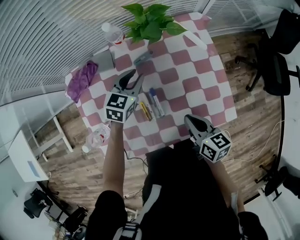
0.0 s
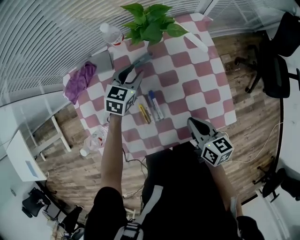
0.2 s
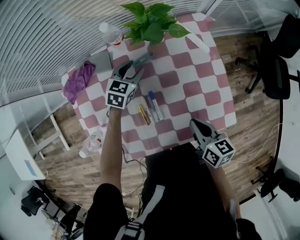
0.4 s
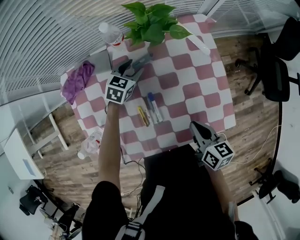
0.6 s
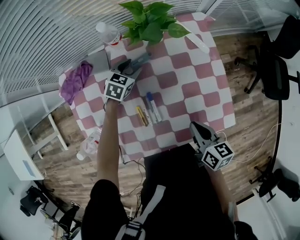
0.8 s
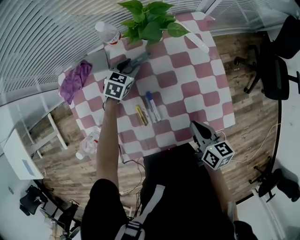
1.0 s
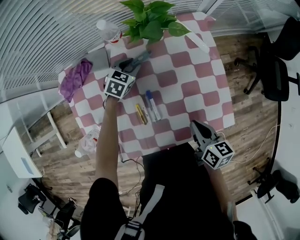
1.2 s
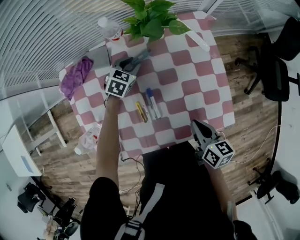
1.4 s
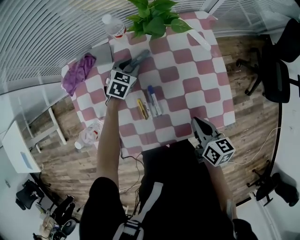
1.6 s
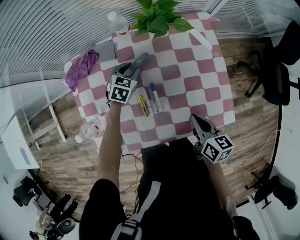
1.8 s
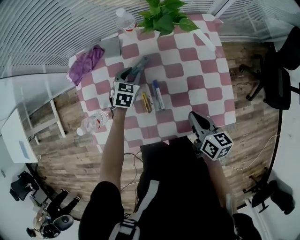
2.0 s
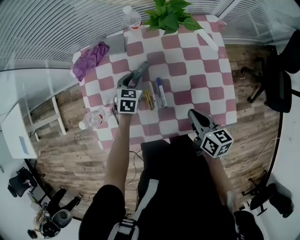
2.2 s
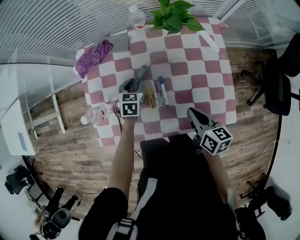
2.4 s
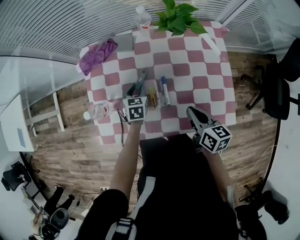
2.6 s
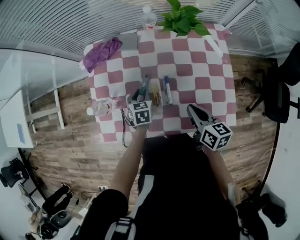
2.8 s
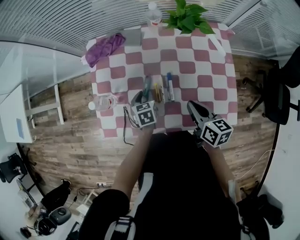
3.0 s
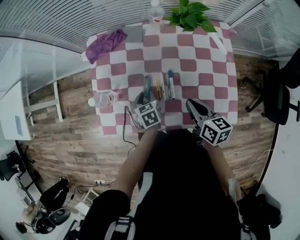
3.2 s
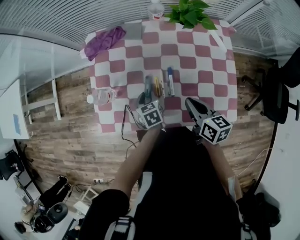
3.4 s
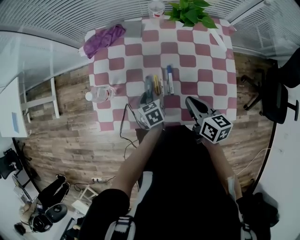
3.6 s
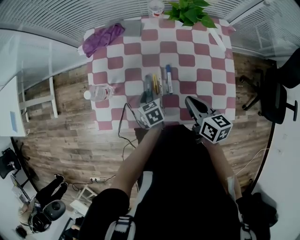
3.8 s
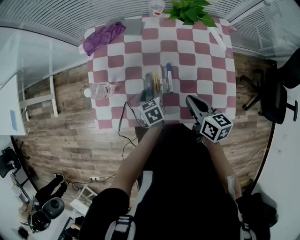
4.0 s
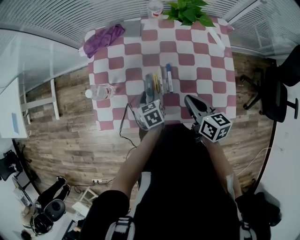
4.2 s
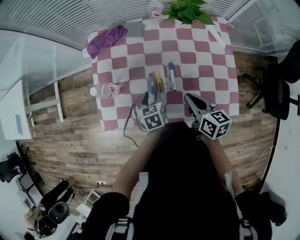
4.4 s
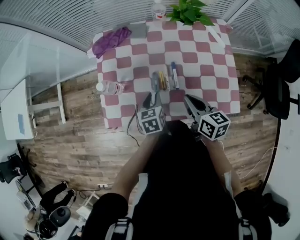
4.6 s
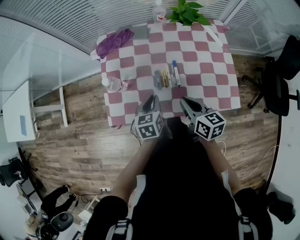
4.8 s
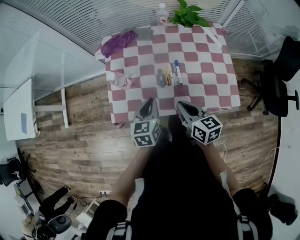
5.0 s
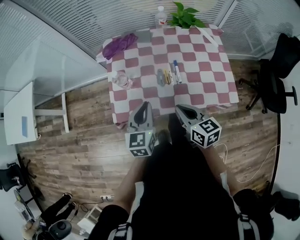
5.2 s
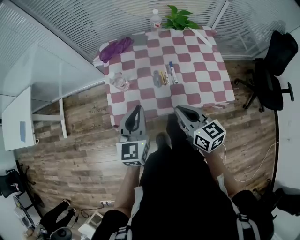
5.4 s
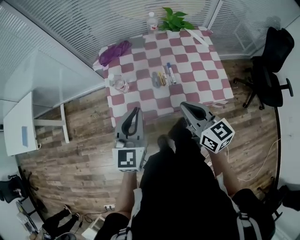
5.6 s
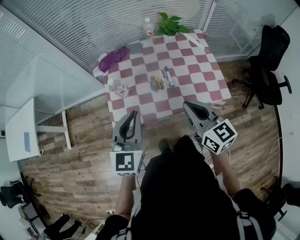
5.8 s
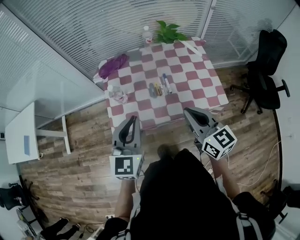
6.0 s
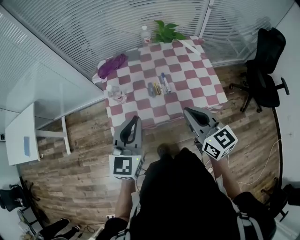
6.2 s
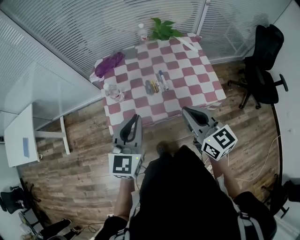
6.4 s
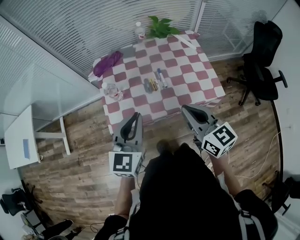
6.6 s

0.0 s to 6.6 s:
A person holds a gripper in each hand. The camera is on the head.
0.0 to 1.6 s: The left gripper moves downward, some 10 cm.
1.6 to 3.2 s: The left gripper ends up approximately 25 cm from where it was, and rotates around the line of its fingers by roughly 50 degrees, counterclockwise from behind; the right gripper shifts by approximately 10 cm.
3.2 to 5.0 s: The right gripper moves to the left and backward, approximately 15 cm; the left gripper shifts roughly 20 cm upward and backward, changes its angle by some 30 degrees, and closes up.
5.0 to 6.6 s: Both grippers travel together upward and backward, about 20 cm. The left gripper rotates some 30 degrees; the right gripper rotates about 20 degrees.

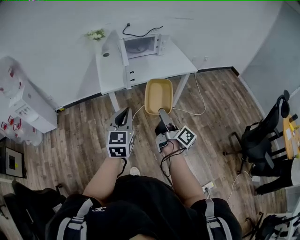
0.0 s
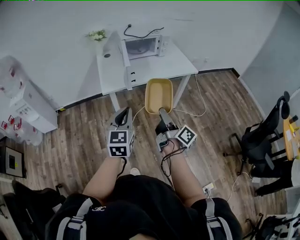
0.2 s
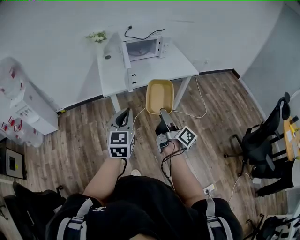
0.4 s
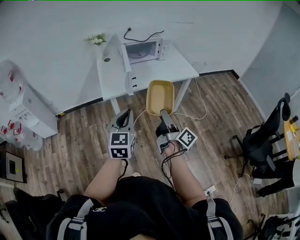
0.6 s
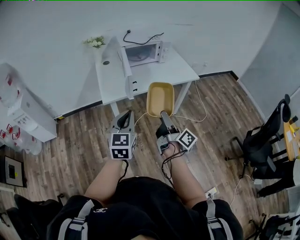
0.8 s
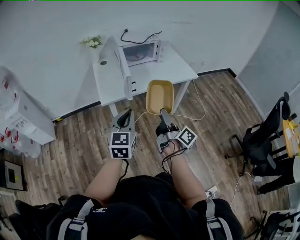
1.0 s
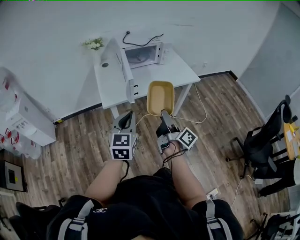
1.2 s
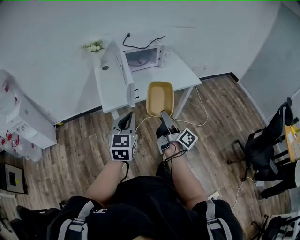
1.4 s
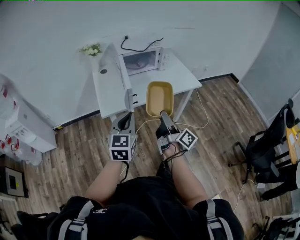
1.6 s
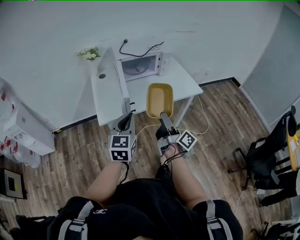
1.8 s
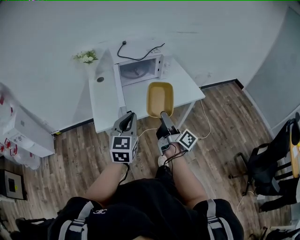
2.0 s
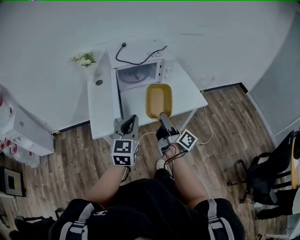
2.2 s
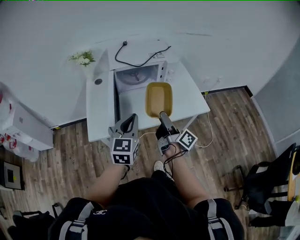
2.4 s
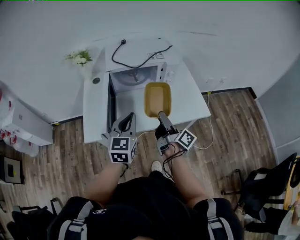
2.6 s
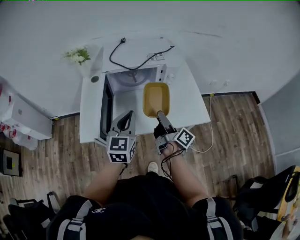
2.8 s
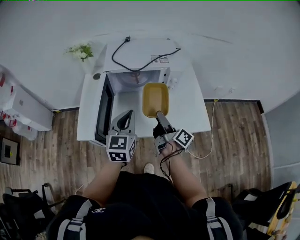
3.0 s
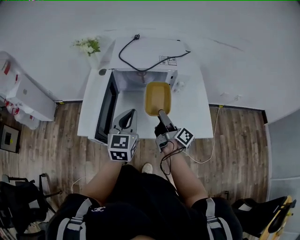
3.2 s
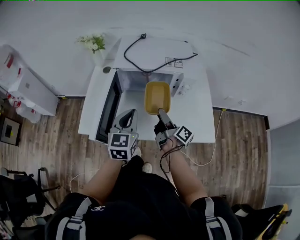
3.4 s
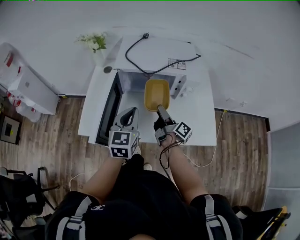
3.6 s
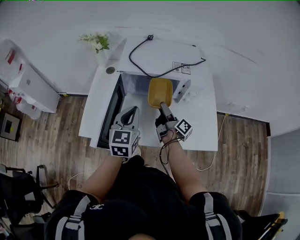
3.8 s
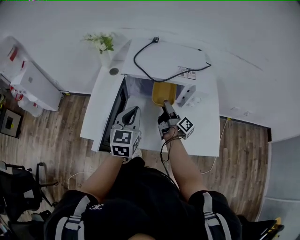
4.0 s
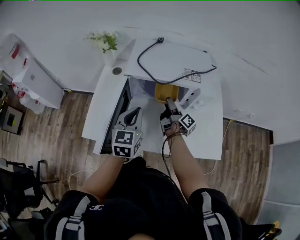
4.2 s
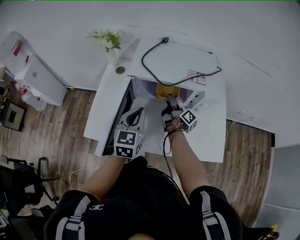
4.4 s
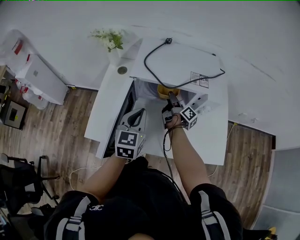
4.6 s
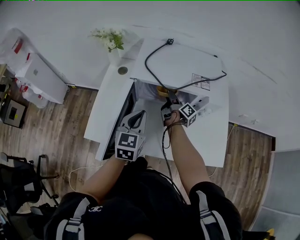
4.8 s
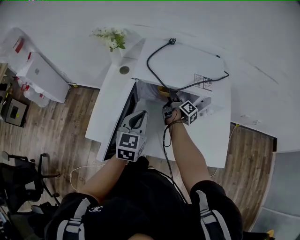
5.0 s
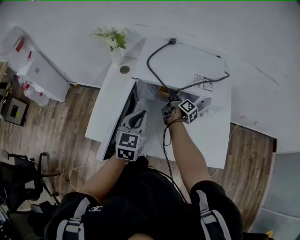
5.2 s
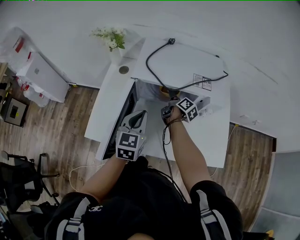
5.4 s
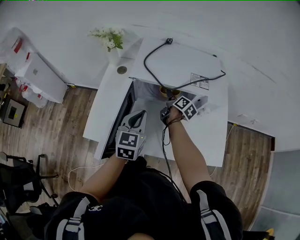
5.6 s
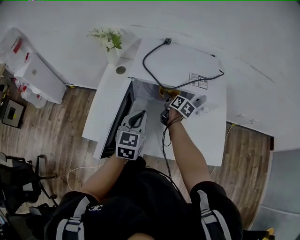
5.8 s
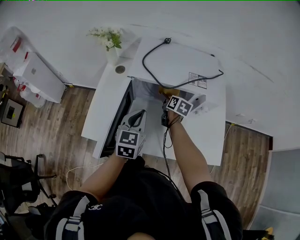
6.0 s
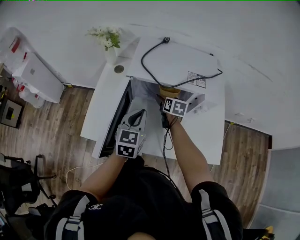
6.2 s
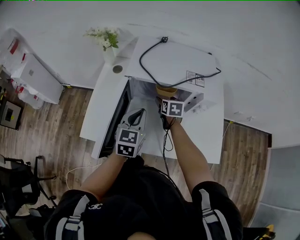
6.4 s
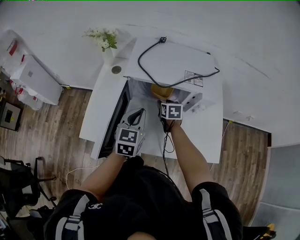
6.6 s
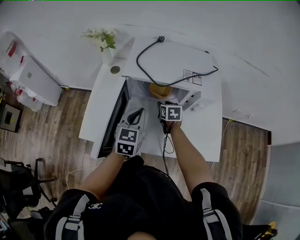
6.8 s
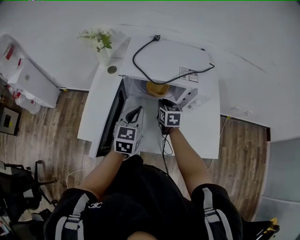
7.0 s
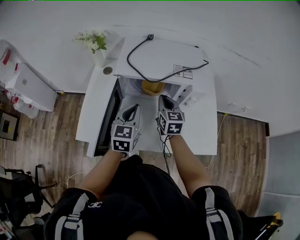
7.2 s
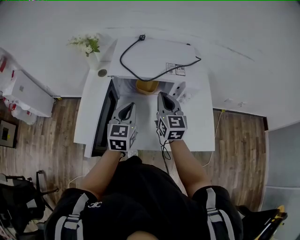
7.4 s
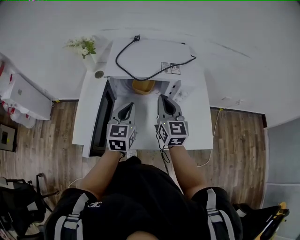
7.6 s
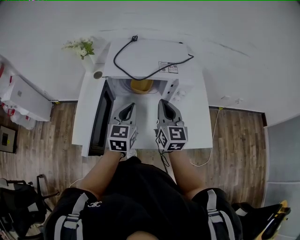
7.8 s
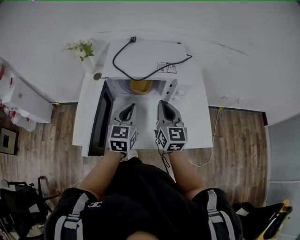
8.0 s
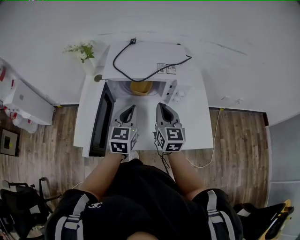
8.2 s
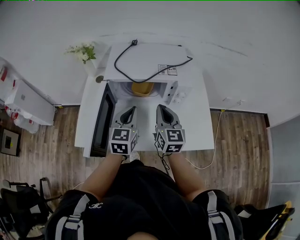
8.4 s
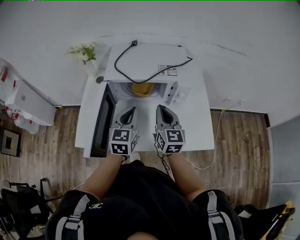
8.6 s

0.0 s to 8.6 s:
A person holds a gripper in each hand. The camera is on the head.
0.0 to 1.4 s: The two grippers go some 15 cm forward.
1.4 to 2.8 s: The pair of grippers is taken forward and to the right, roughly 50 cm.
2.8 to 4.4 s: The left gripper goes some 15 cm forward, while the right gripper shifts some 35 cm forward and downward.
4.4 to 5.8 s: The right gripper ends up roughly 5 cm from where it was, and tips its fingers downward by roughly 30 degrees.
5.8 to 7.2 s: The right gripper heads upward and backward, covering approximately 15 cm, twists about 40 degrees counterclockwise, seen from behind, and closes its fingers.
7.2 to 8.6 s: The left gripper moves some 5 cm. Meanwhile the right gripper moves backward and upward, about 10 cm.

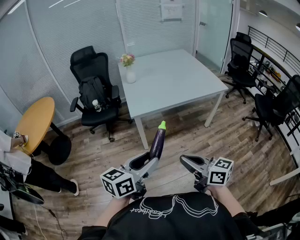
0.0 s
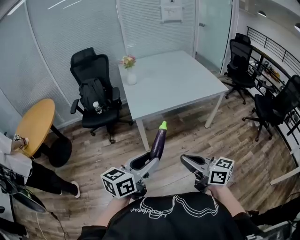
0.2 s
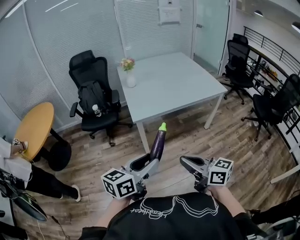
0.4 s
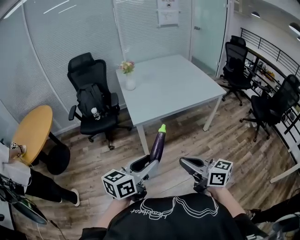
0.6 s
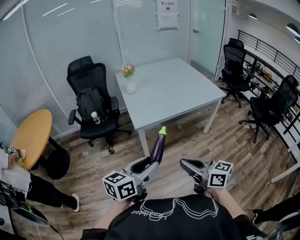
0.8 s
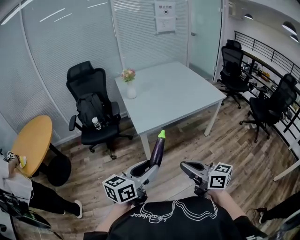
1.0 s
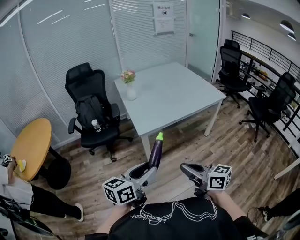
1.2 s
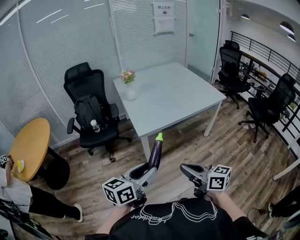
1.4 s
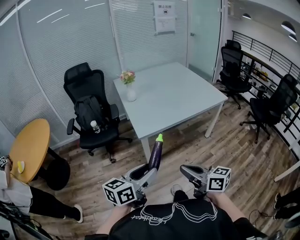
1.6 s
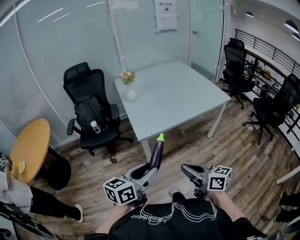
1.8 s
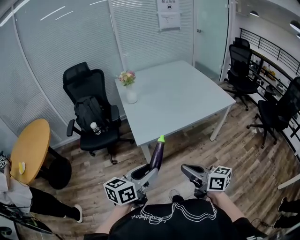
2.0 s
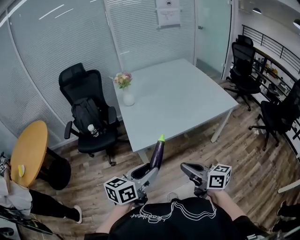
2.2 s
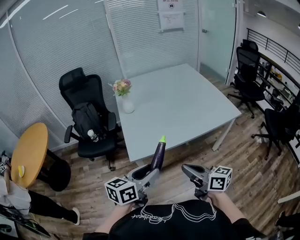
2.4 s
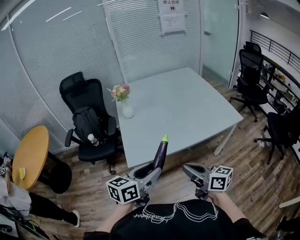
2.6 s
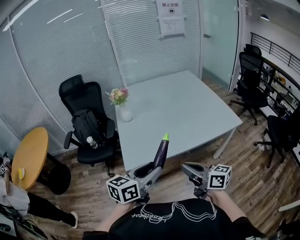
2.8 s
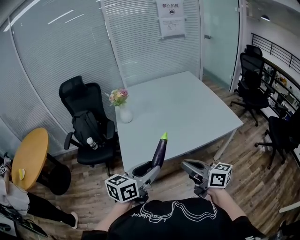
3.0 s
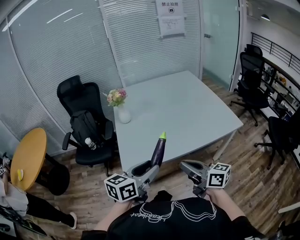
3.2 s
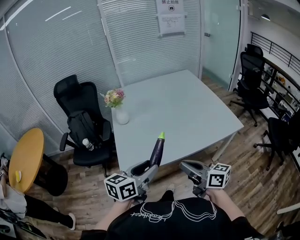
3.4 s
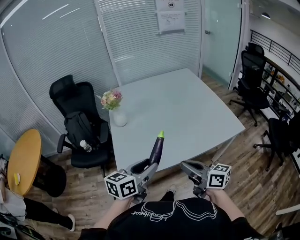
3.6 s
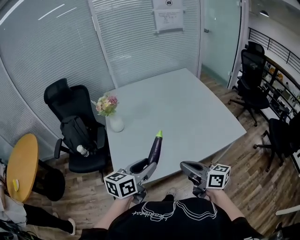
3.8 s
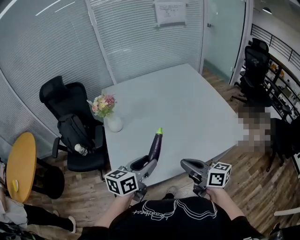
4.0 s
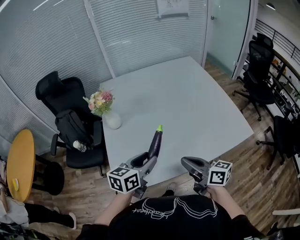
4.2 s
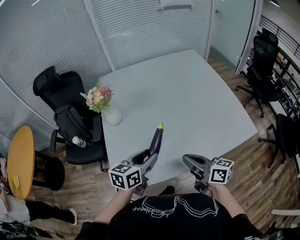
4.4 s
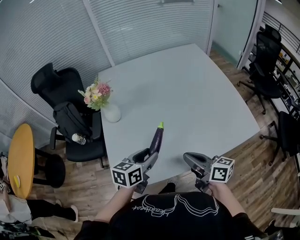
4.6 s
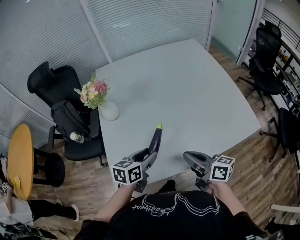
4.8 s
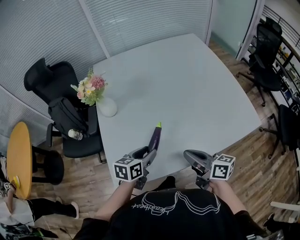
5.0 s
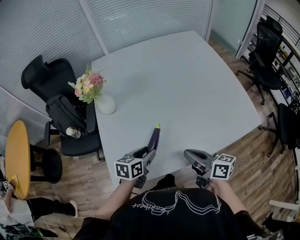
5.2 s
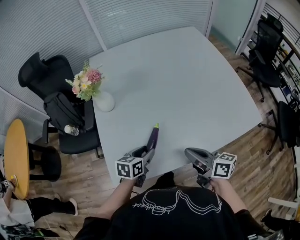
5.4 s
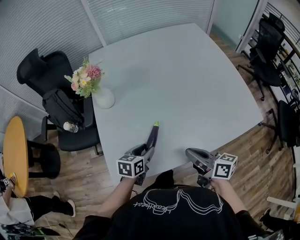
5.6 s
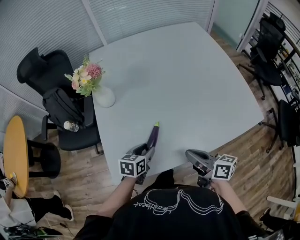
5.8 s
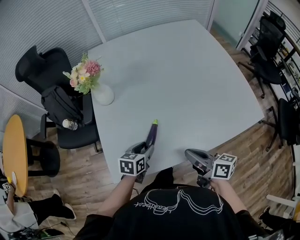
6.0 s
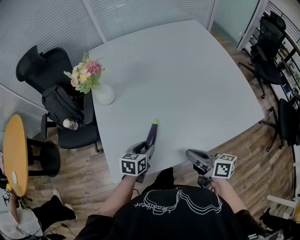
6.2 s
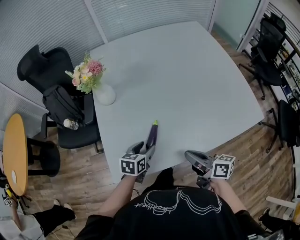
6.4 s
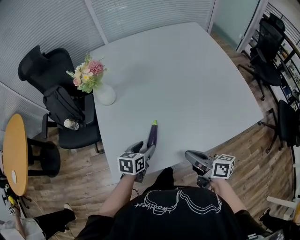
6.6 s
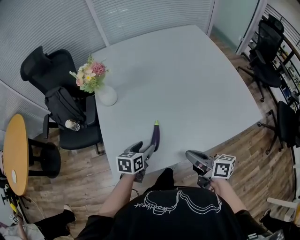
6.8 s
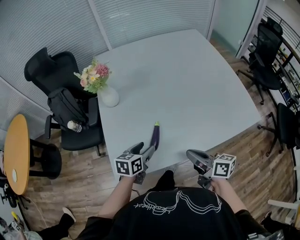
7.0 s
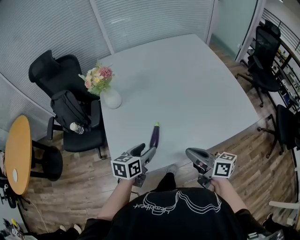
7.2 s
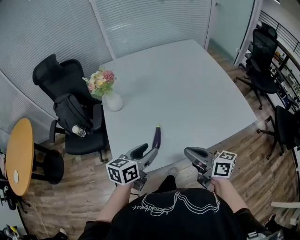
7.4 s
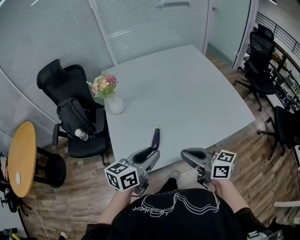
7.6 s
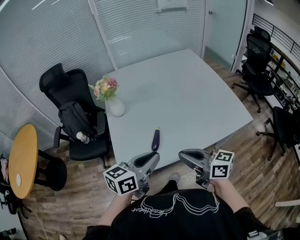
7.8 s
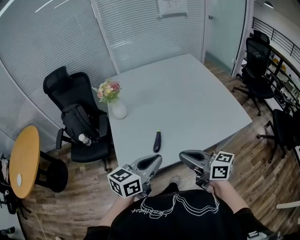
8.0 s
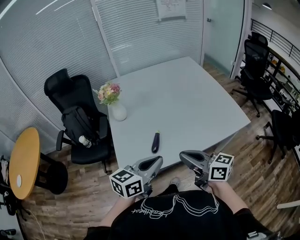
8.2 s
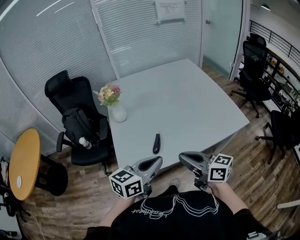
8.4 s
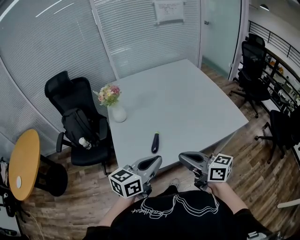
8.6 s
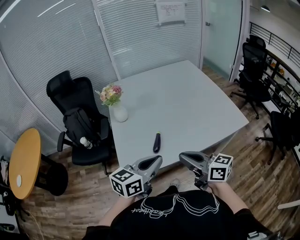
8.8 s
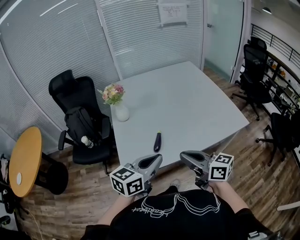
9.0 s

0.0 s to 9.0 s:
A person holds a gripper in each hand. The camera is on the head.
0.0 to 1.6 s: Both grippers move to the left and forward, about 15 cm.
1.6 to 3.0 s: Both grippers move forward and to the right, about 35 cm.
3.0 to 4.4 s: The grippers both shift forward by roughly 25 cm.
4.4 to 6.0 s: The right gripper travels downward by approximately 10 cm, while the left gripper heads downward, covering some 20 cm.
6.0 to 7.6 s: The right gripper heads upward and backward, covering about 15 cm, and rotates some 20 degrees; the left gripper moves upward and backward, roughly 25 cm, and turns by some 30 degrees.
7.6 to 9.0 s: The right gripper moves backward, roughly 5 cm, while the left gripper is displaced backward and upward by about 10 cm, and closes its fingers.
